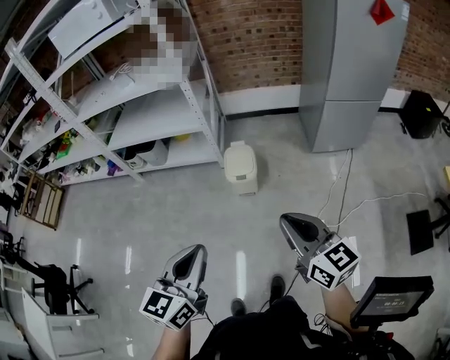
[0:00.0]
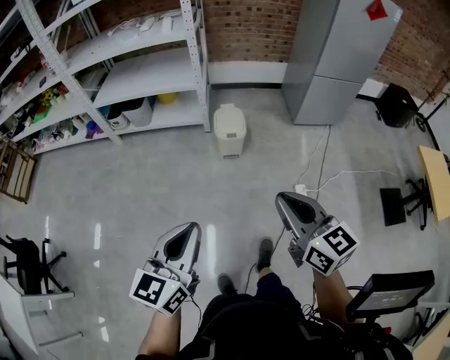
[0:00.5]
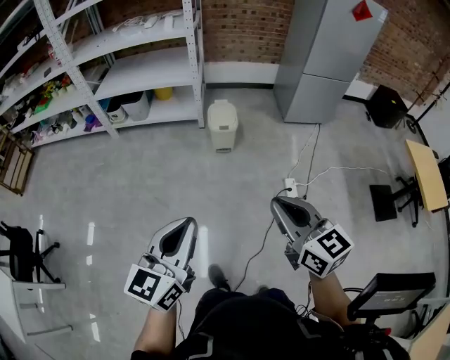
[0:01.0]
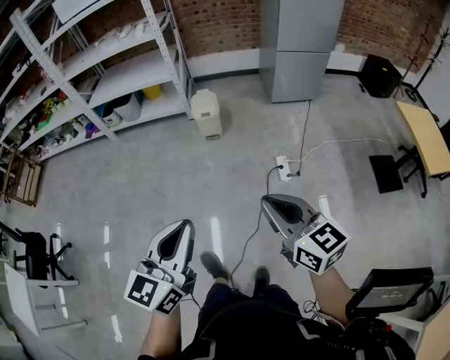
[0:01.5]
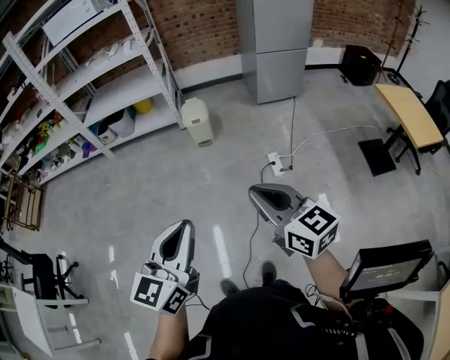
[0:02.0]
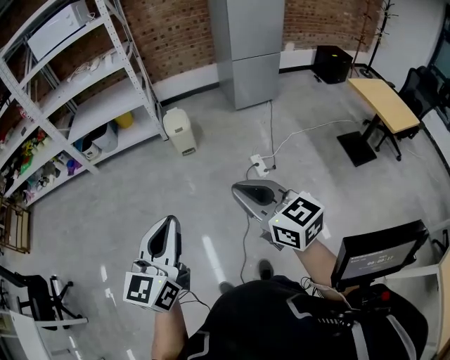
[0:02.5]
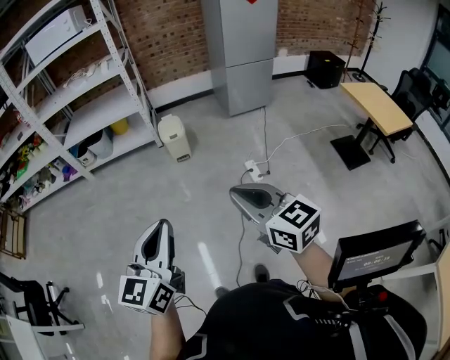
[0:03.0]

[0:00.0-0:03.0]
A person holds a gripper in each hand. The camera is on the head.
0:00.0 to 0:01.5: The grippers both shift backward by about 40 cm.
0:01.5 to 0:03.0: The grippers both shift backward and to the left by roughly 10 cm.

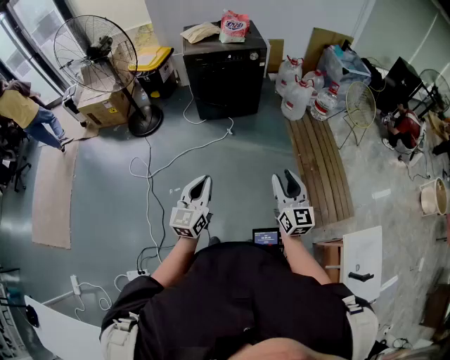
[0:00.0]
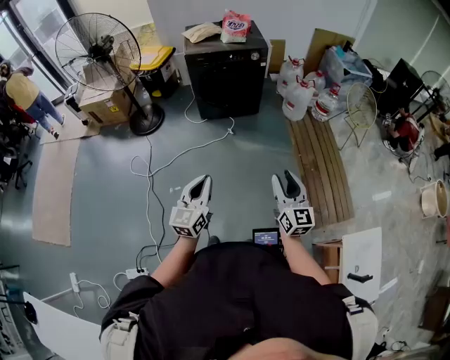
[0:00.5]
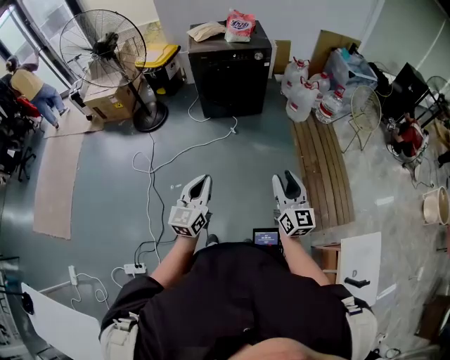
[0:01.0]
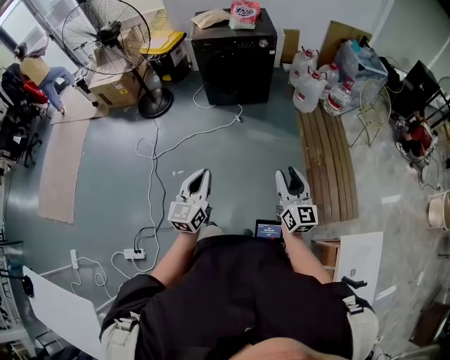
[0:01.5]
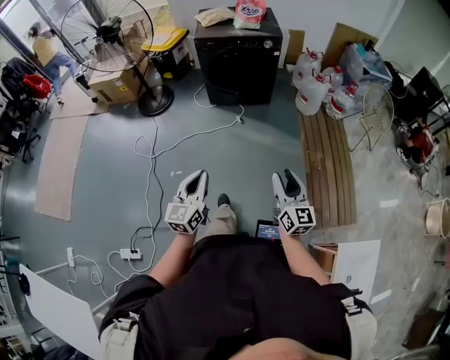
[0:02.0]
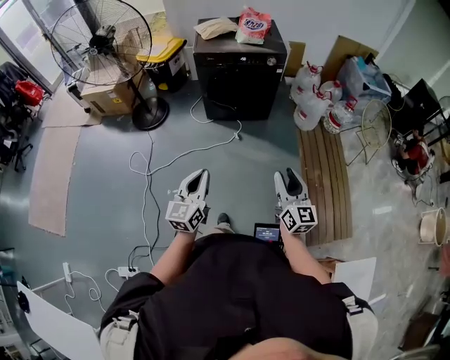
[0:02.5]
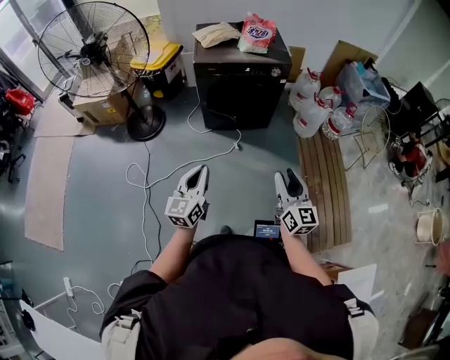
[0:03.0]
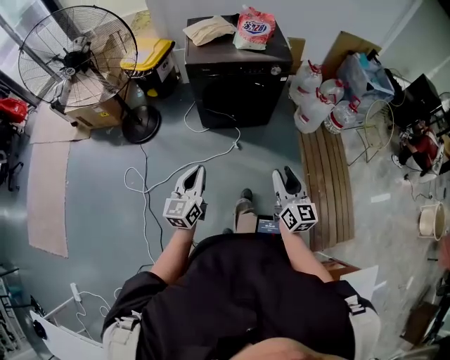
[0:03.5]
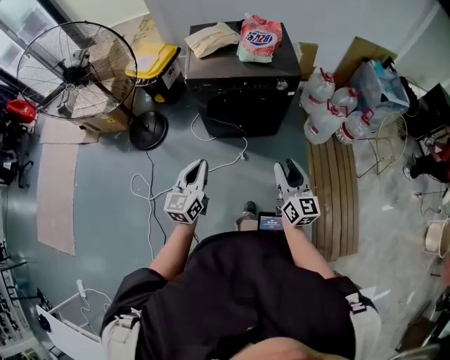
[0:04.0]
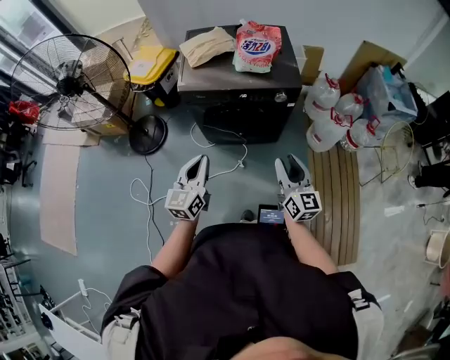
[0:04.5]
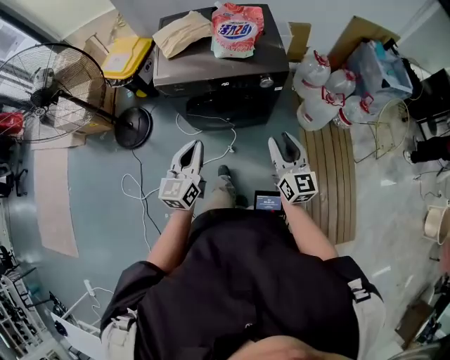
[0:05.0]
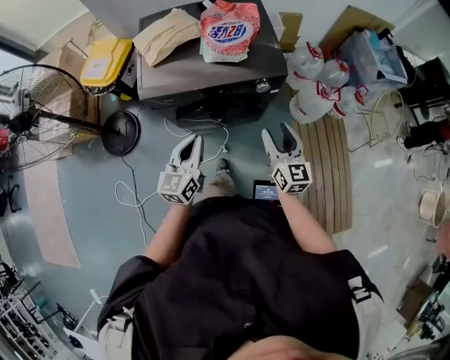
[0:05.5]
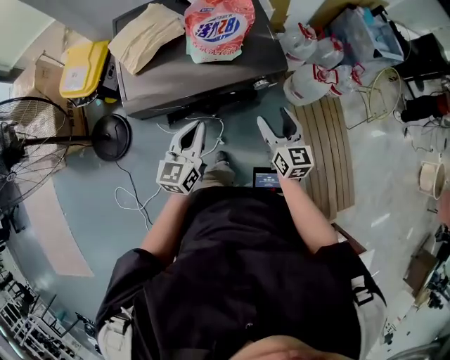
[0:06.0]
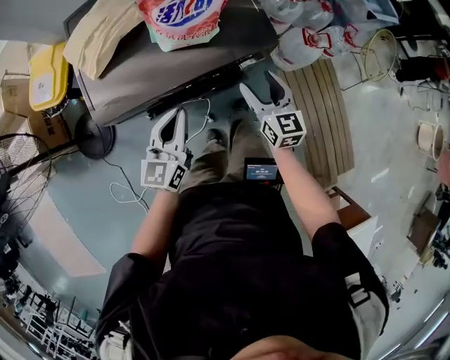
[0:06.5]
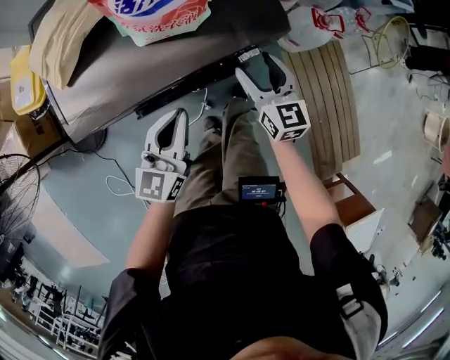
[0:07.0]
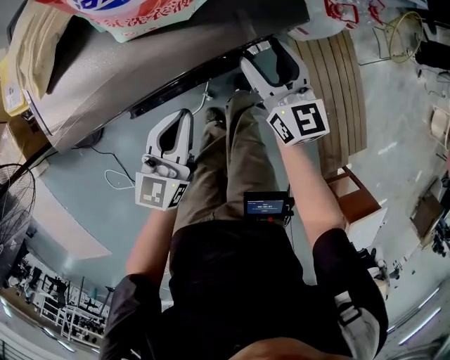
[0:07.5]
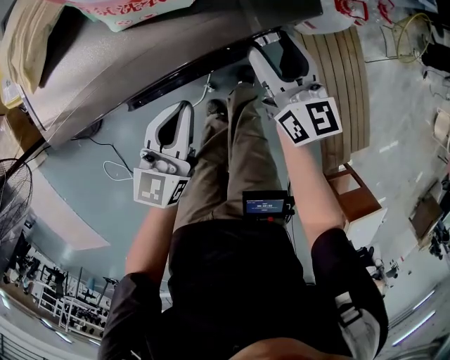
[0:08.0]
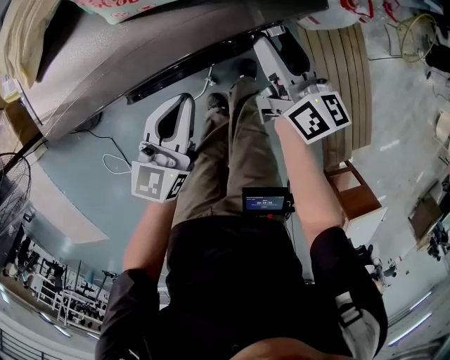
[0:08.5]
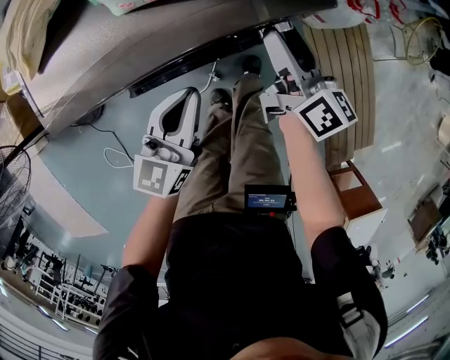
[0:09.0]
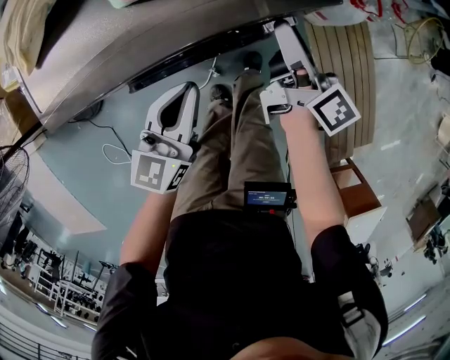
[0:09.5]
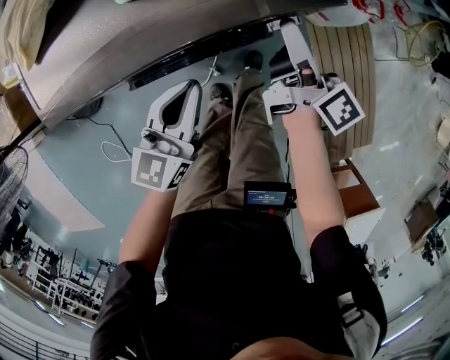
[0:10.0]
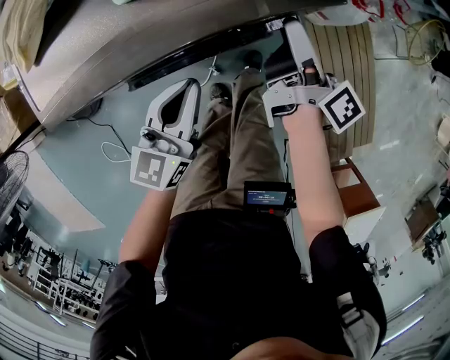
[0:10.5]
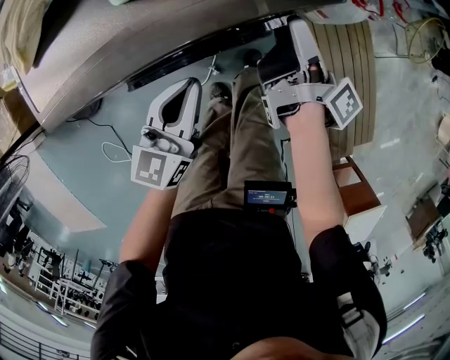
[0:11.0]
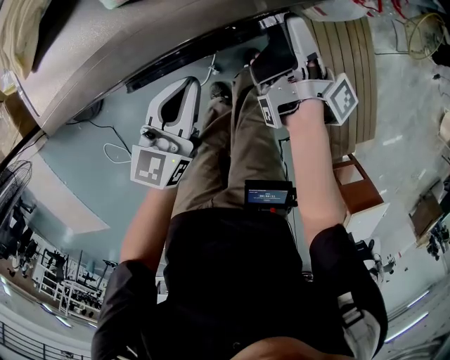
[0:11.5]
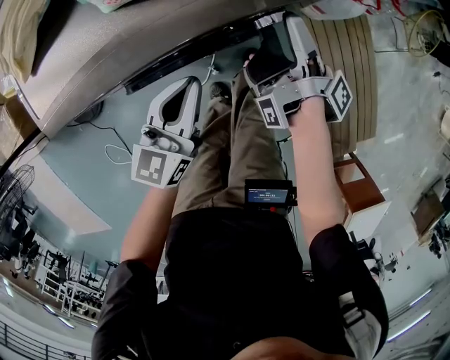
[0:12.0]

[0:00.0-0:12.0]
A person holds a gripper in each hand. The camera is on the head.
0:00.0 to 0:02.0: The right gripper changes place by approximately 5 cm.
0:02.0 to 0:04.0: Both grippers are carried forward, some 50 cm.
0:04.0 to 0:06.0: Both grippers travel together forward, roughly 35 cm. The right gripper opens its fingers.
0:06.0 to 0:08.0: The left gripper is displaced downward and forward by some 15 cm; the right gripper heads forward and downward, covering some 20 cm.
0:08.0 to 0:10.0: The right gripper rotates around the line of its fingers by about 50 degrees, clockwise from behind.
0:10.0 to 0:12.0: The right gripper rolls clockwise, seen from behind, by approximately 50 degrees.

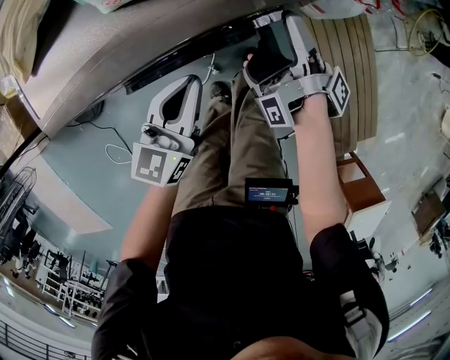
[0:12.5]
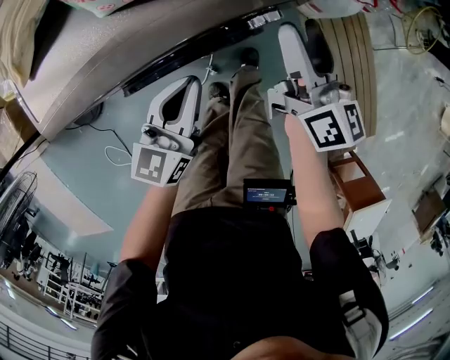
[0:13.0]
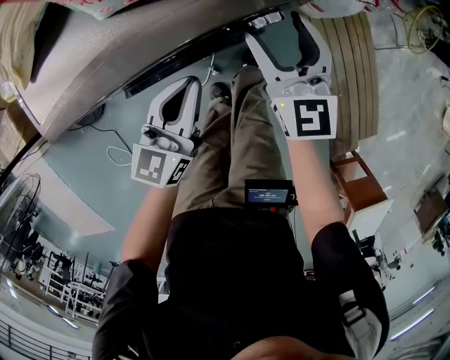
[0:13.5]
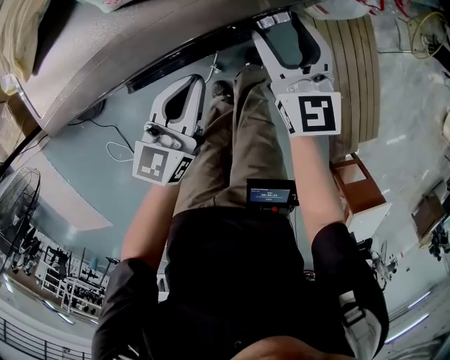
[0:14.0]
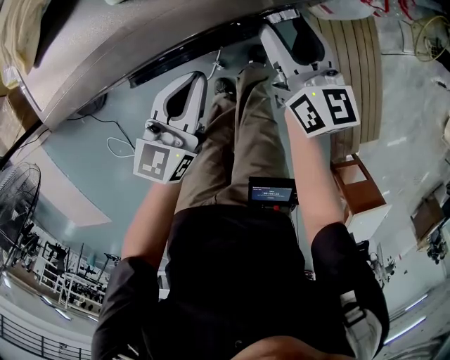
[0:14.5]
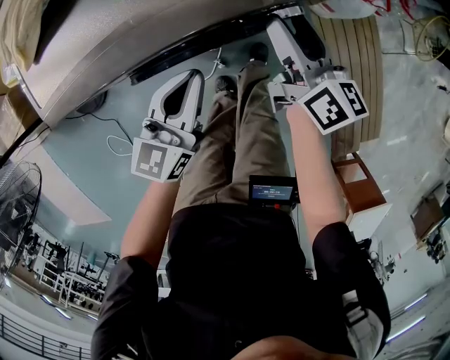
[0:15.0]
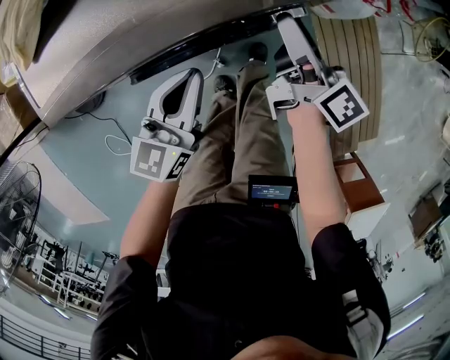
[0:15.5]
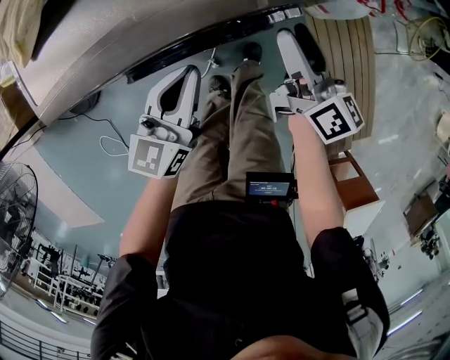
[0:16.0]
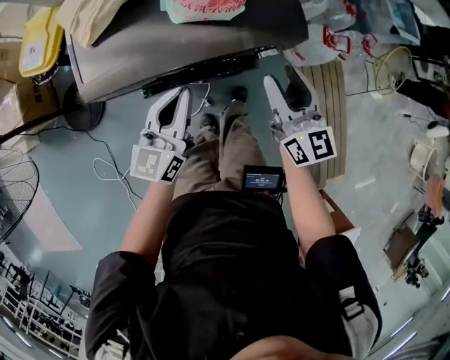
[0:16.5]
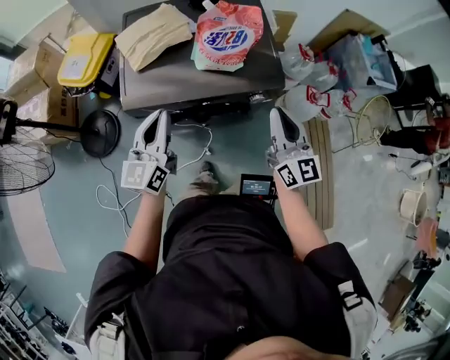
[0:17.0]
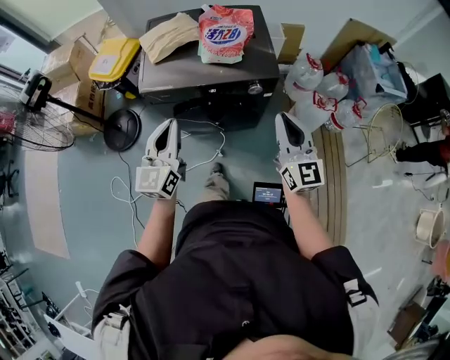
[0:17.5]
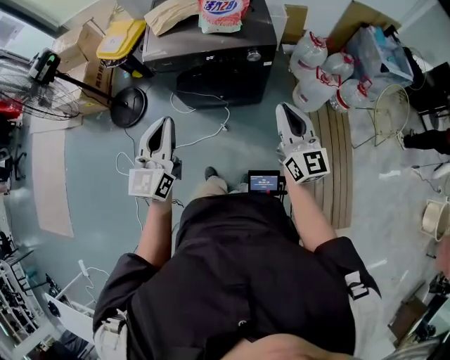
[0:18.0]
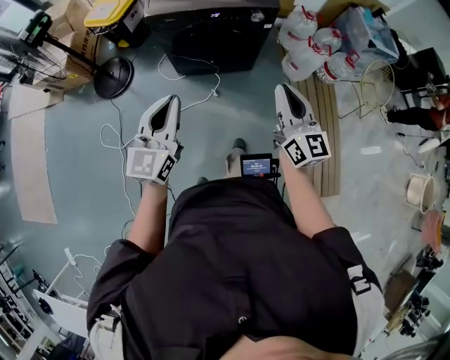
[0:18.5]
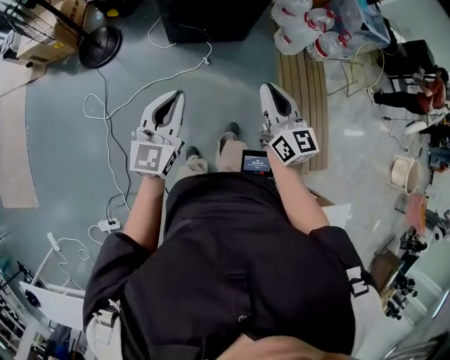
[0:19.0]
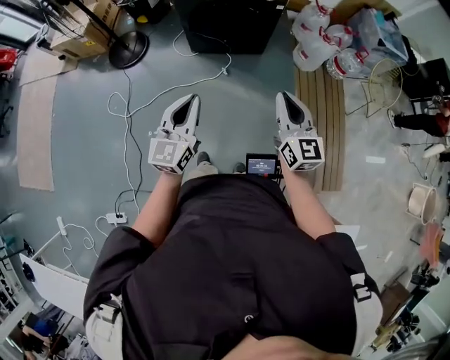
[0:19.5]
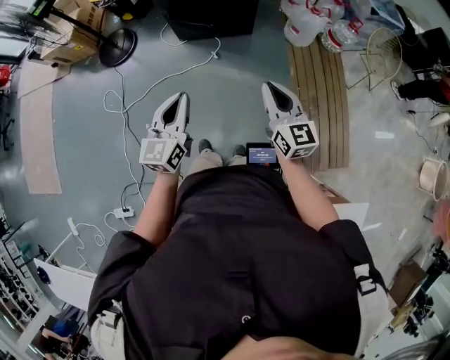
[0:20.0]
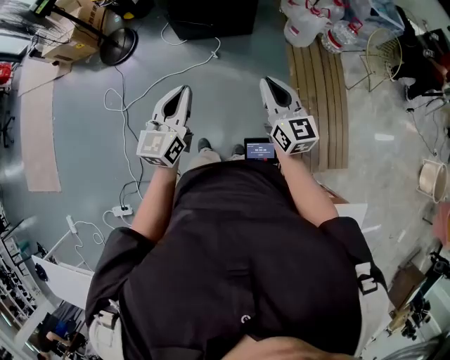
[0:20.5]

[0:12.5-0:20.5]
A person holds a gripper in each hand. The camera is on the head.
0:12.5 to 0:14.5: The right gripper rolls counterclockwise, seen from behind, by roughly 100 degrees.
0:14.5 to 0:16.5: The left gripper shifts about 15 cm upward and to the left; the right gripper travels upward and backward by some 15 cm.
0:16.5 to 0:18.5: Both grippers are carried backward, approximately 40 cm. The right gripper closes its fingers. Meanwhile the left gripper is displaced upward by about 20 cm, and changes its angle by roughly 20 degrees.
0:18.5 to 0:20.5: The left gripper travels backward and to the right by roughly 25 cm. Meanwhile the right gripper moves backward, roughly 20 cm.

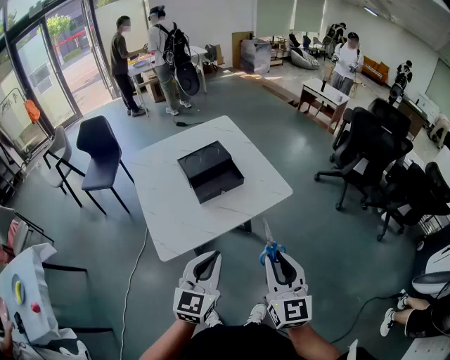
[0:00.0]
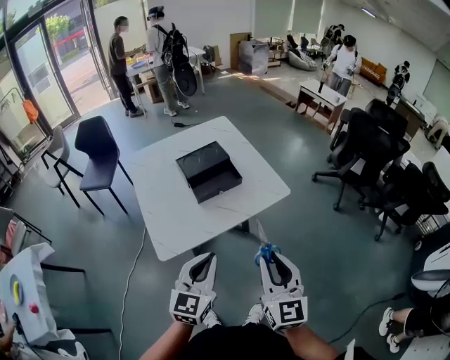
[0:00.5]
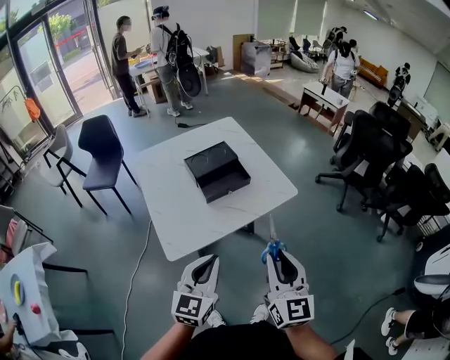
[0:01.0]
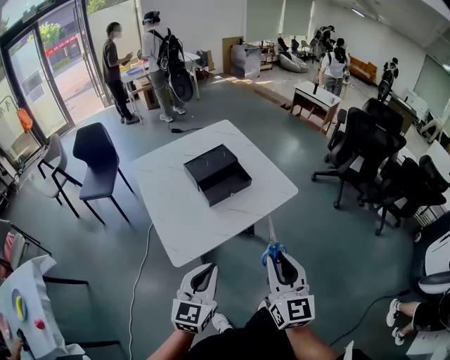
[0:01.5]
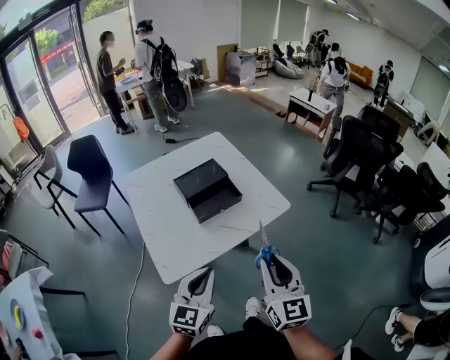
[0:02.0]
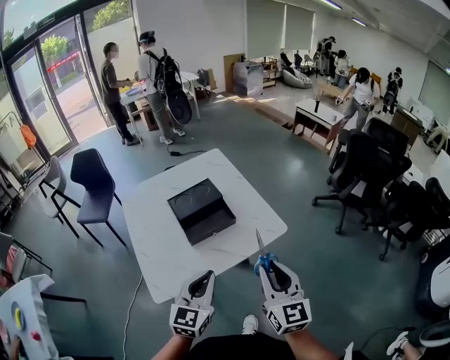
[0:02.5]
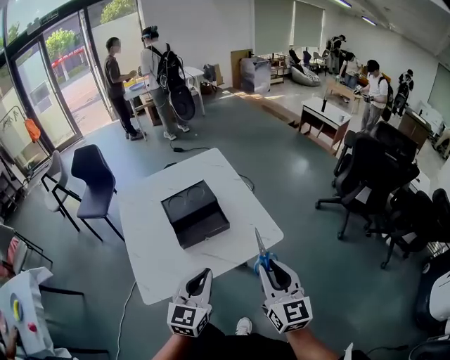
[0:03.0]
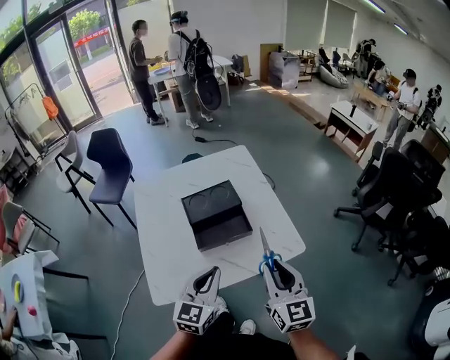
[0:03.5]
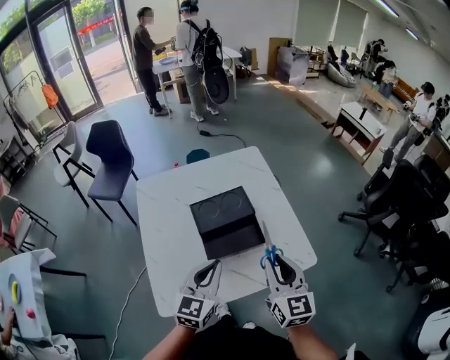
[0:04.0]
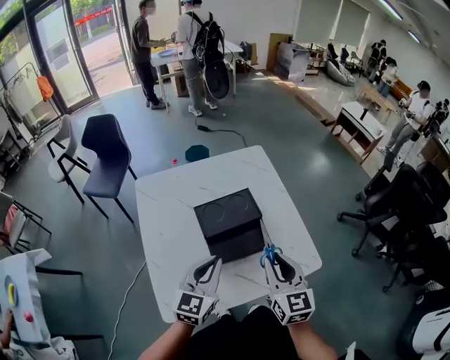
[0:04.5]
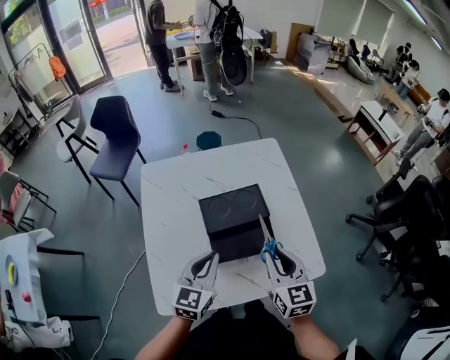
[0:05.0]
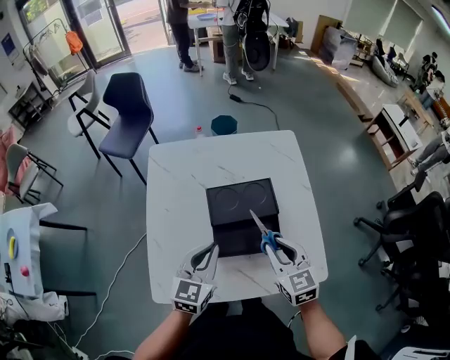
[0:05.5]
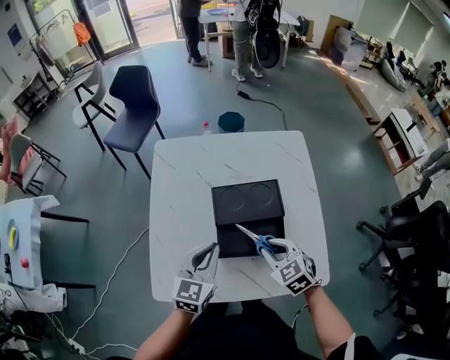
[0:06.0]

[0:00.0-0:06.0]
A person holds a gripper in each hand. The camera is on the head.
0:00.0 to 0:02.0: The right gripper moves about 5 cm.
0:02.0 to 0:04.0: The grippers both shift forward by approximately 25 cm.
0:04.0 to 0:06.0: The left gripper moves roughly 10 cm. Meanwhile the right gripper heads downward, covering some 15 cm, and tilts its fingers about 40 degrees downward.
